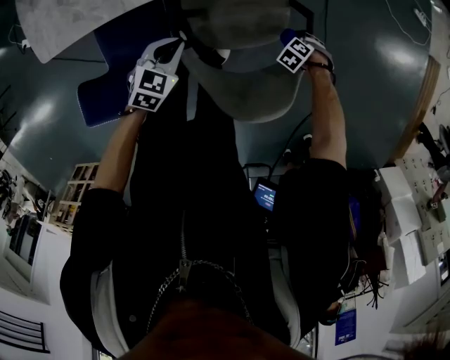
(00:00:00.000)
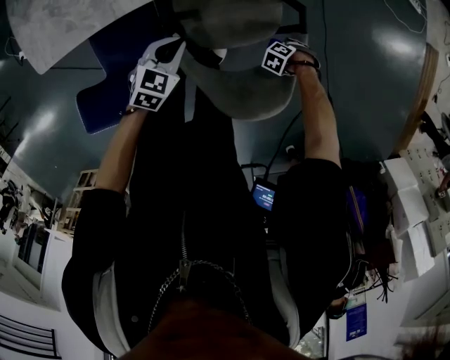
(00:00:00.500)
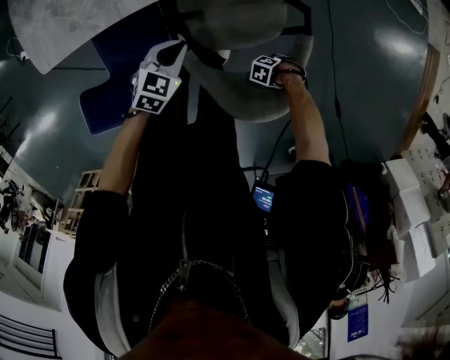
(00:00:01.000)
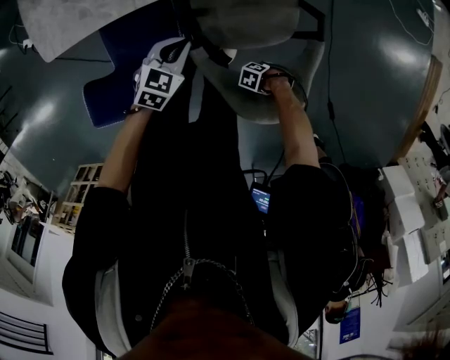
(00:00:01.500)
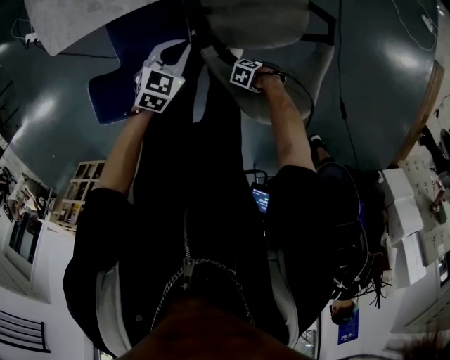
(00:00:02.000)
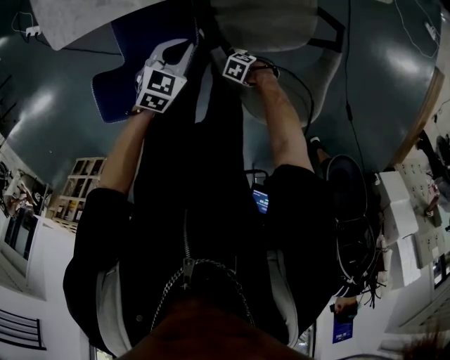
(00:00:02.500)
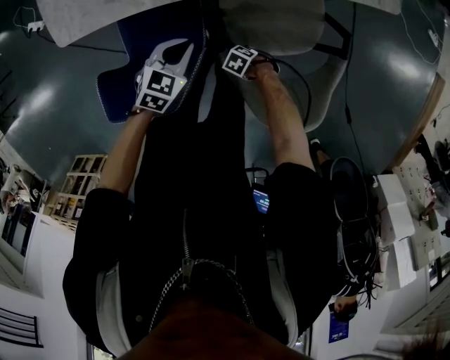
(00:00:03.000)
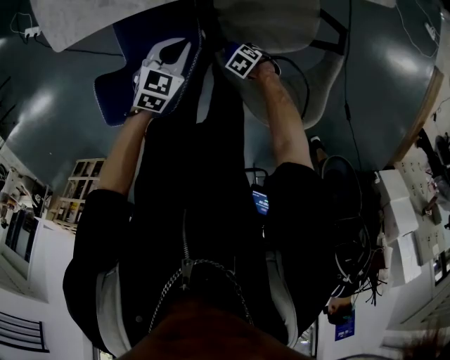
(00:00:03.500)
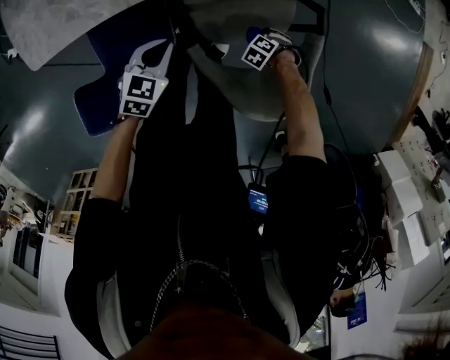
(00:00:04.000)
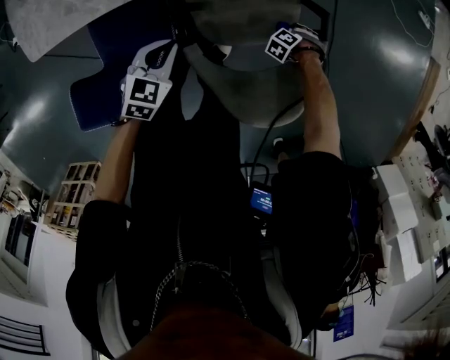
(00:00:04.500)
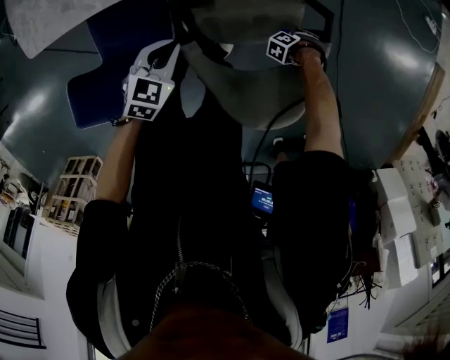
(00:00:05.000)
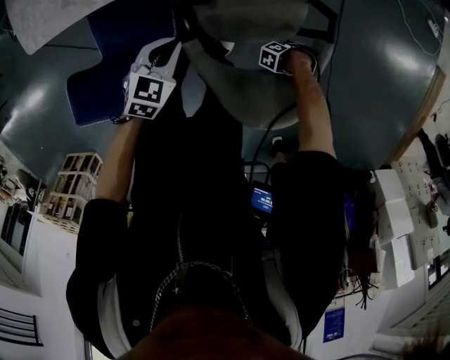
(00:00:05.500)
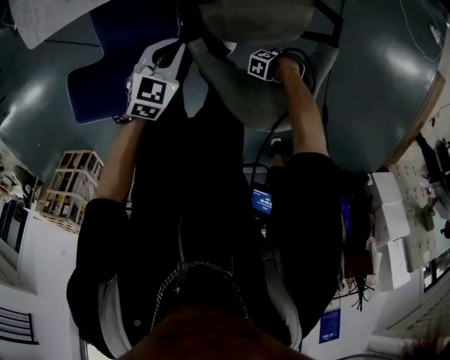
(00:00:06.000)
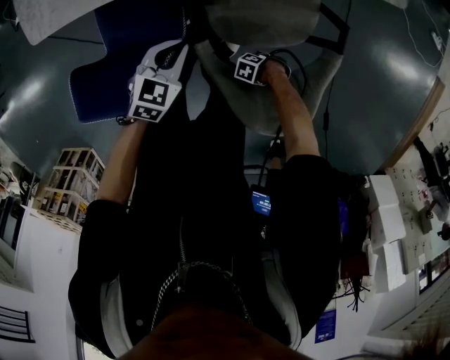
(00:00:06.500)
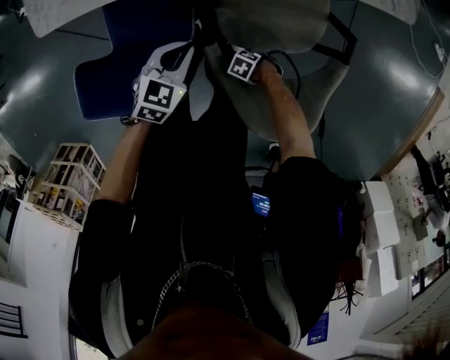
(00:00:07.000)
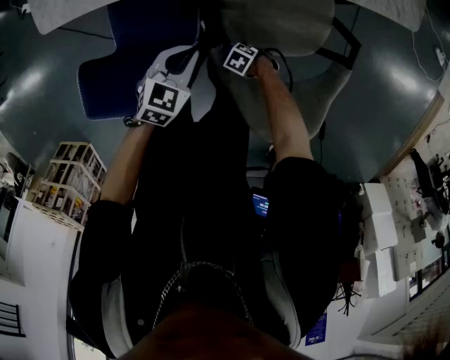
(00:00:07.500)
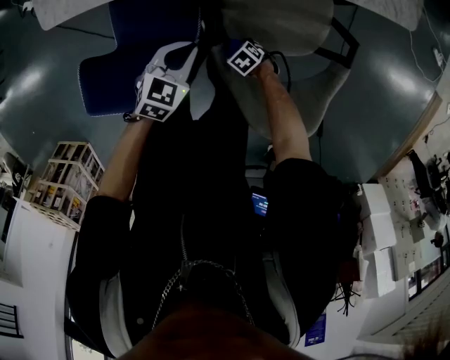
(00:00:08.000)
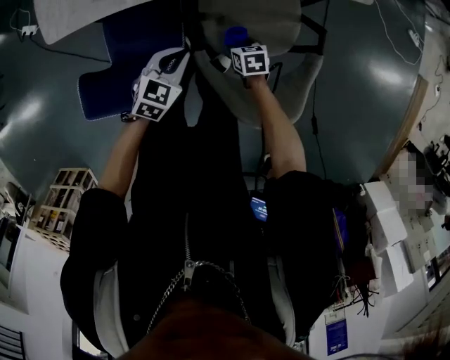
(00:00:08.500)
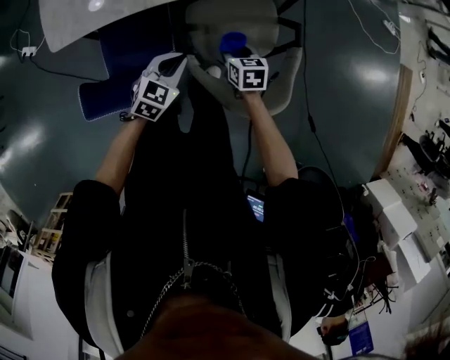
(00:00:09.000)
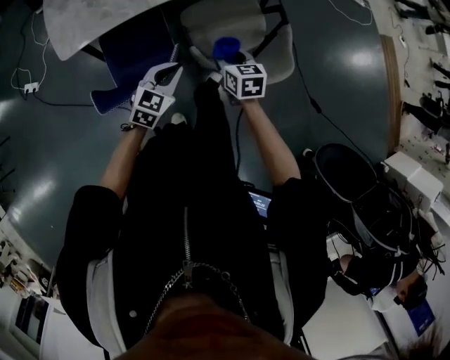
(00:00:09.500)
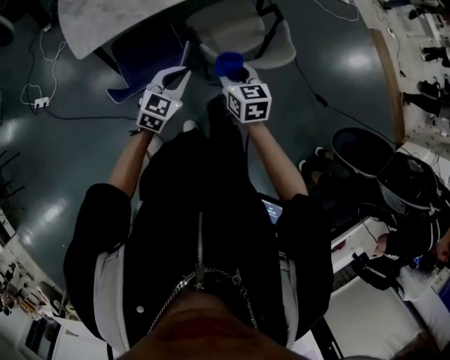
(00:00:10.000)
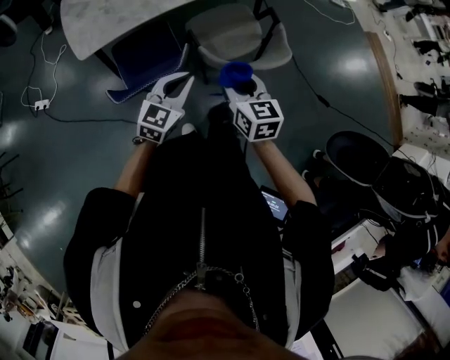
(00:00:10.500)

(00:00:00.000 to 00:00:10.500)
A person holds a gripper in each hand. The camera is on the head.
00:00:00.000 - 00:00:02.000: The left gripper ends up roughly 5 cm from where it was.
00:00:06.500 - 00:00:08.500: The left gripper changes place by some 5 cm.
00:00:08.500 - 00:00:10.500: The left gripper changes place by about 30 cm, and turns by roughly 30 degrees.

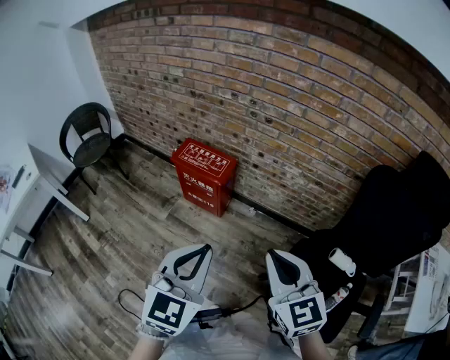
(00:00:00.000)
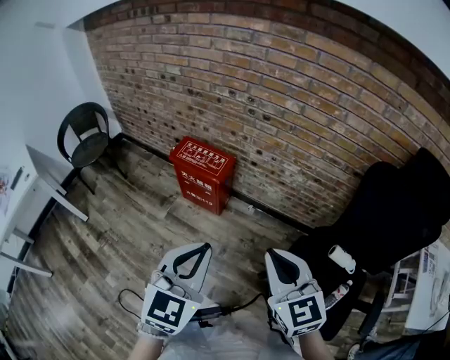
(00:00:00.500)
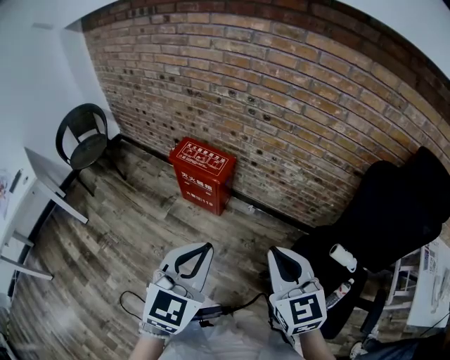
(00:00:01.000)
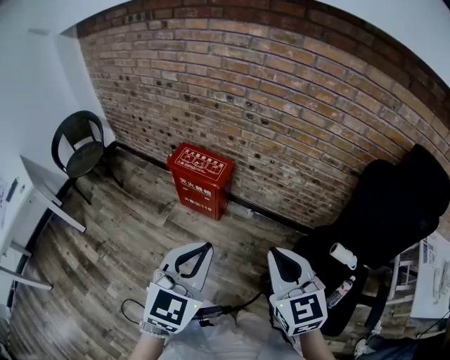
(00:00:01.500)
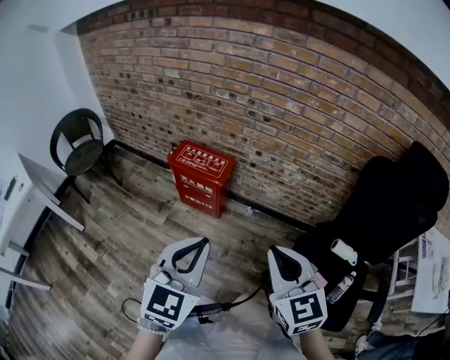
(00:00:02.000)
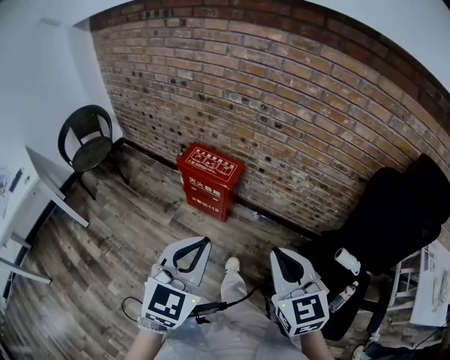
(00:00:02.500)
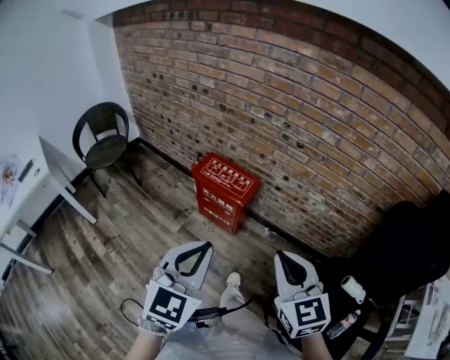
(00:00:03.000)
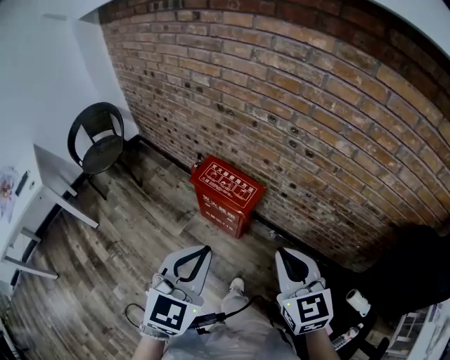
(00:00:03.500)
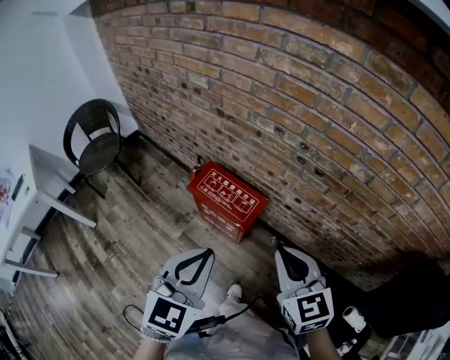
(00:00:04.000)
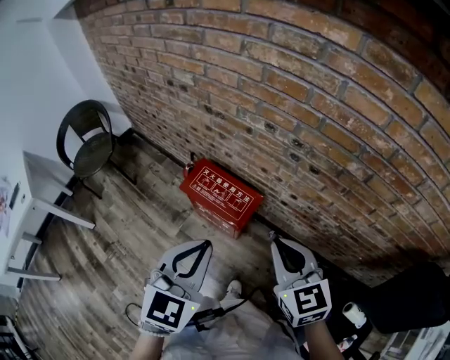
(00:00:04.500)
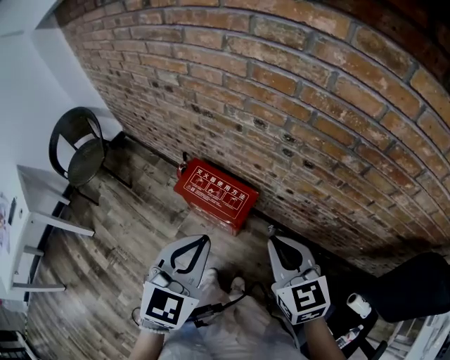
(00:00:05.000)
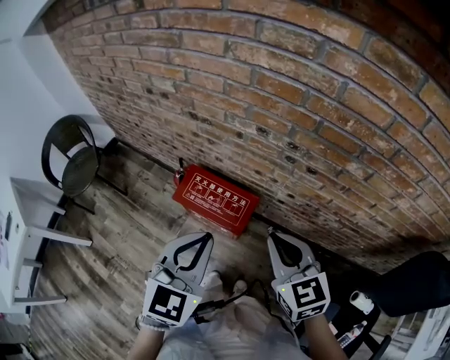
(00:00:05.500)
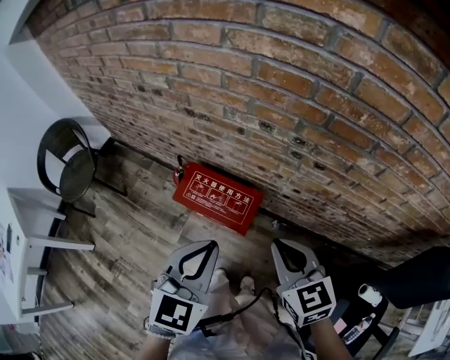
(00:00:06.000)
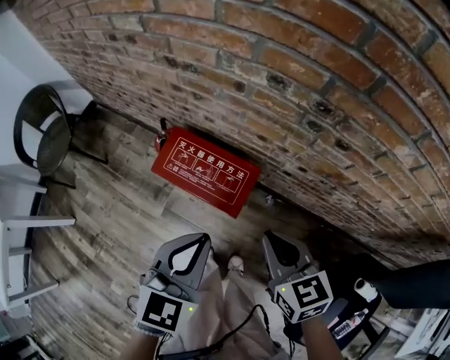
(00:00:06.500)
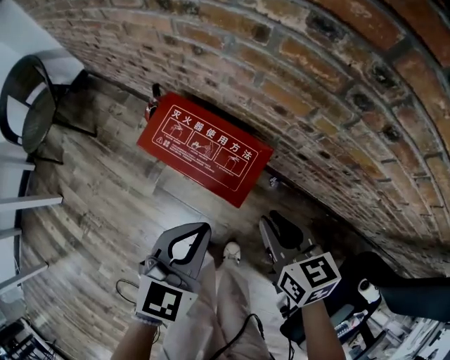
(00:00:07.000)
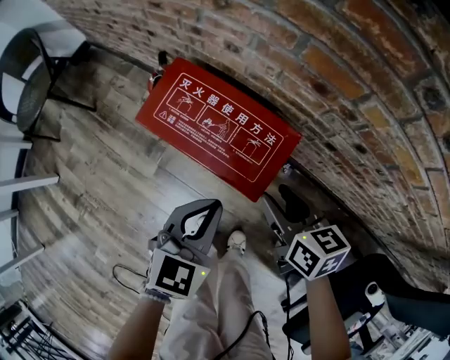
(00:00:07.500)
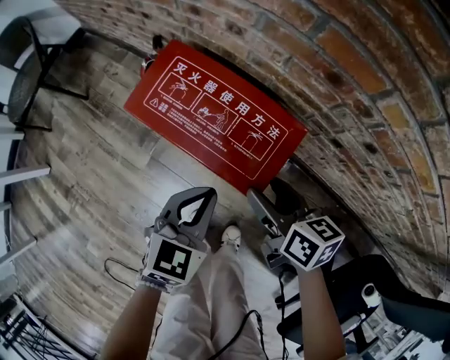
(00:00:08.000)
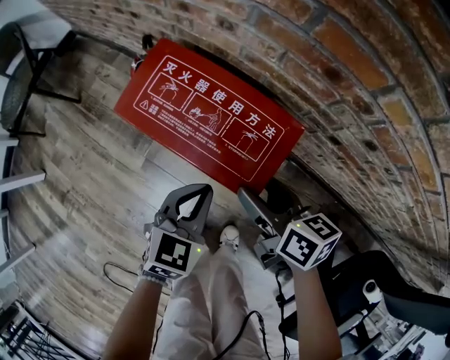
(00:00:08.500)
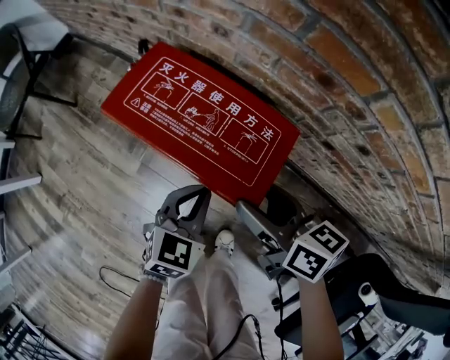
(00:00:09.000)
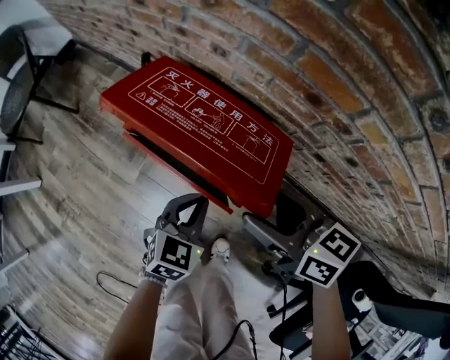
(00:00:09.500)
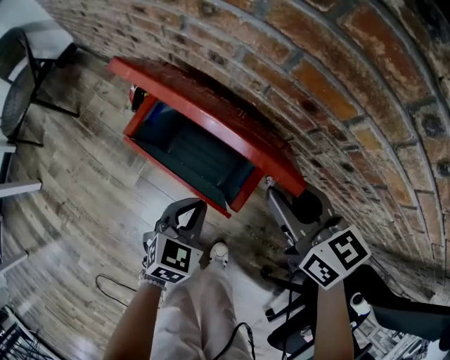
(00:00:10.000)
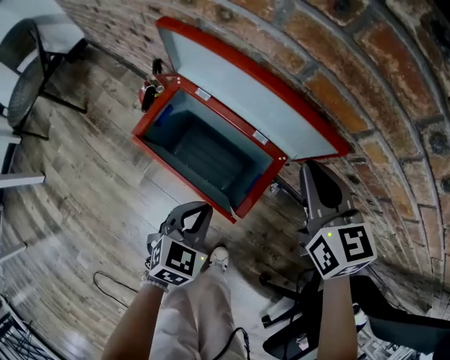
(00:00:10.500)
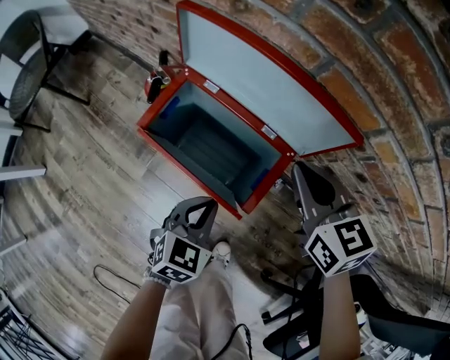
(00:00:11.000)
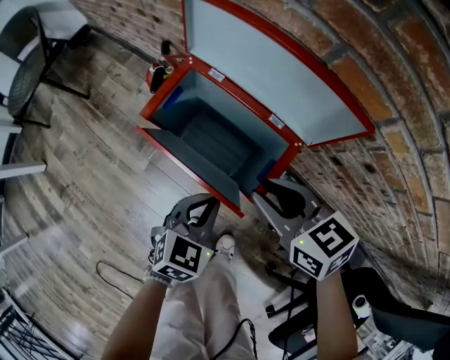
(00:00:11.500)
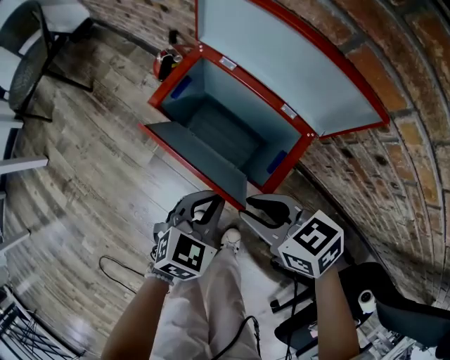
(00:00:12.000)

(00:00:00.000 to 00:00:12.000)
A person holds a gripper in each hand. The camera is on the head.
00:00:00.000 - 00:00:02.000: The left gripper is displaced to the left by approximately 5 cm.
00:00:02.000 - 00:00:04.000: Both grippers move forward, about 30 cm.
00:00:04.000 - 00:00:06.000: The grippers both shift forward by some 10 cm.
00:00:06.000 - 00:00:08.000: The grippers both shift downward by about 40 cm. The right gripper changes its angle by some 40 degrees, and opens up.
00:00:08.000 - 00:00:10.000: The right gripper travels upward and forward by approximately 10 cm, changes its angle by roughly 20 degrees, and closes its fingers. The left gripper shifts approximately 5 cm downward.
00:00:10.000 - 00:00:12.000: The right gripper travels to the left, downward and backward by approximately 15 cm, and swivels approximately 30 degrees.

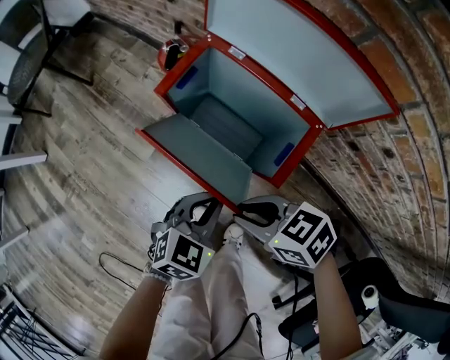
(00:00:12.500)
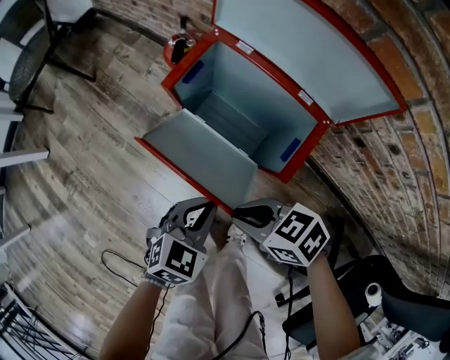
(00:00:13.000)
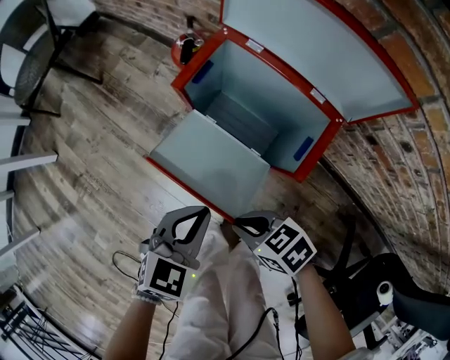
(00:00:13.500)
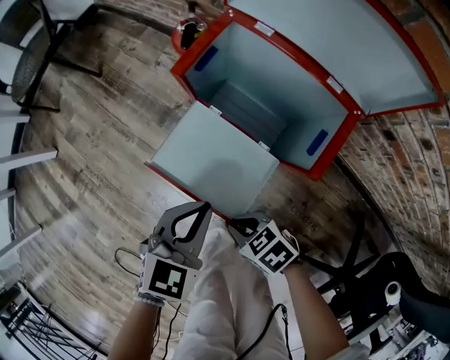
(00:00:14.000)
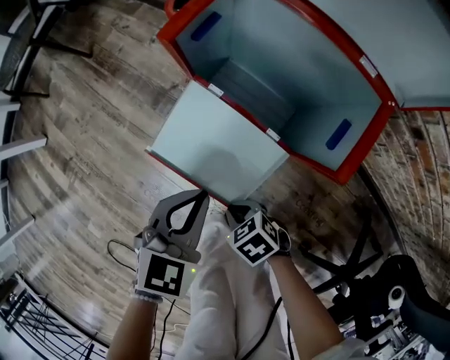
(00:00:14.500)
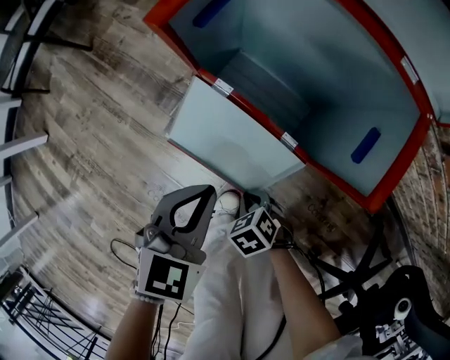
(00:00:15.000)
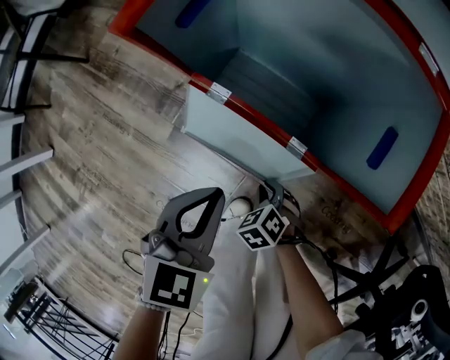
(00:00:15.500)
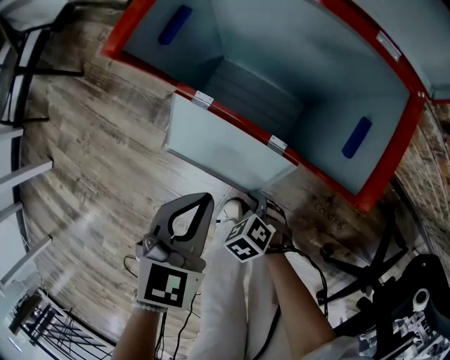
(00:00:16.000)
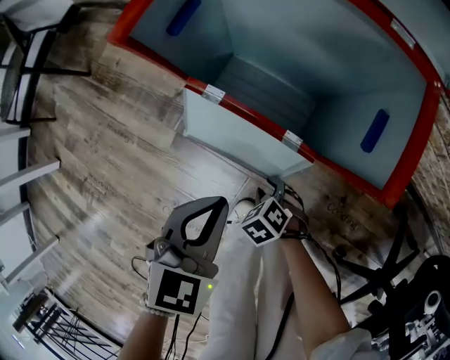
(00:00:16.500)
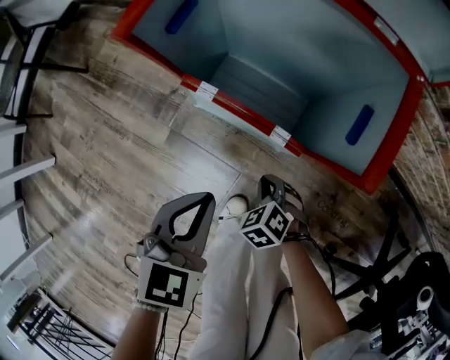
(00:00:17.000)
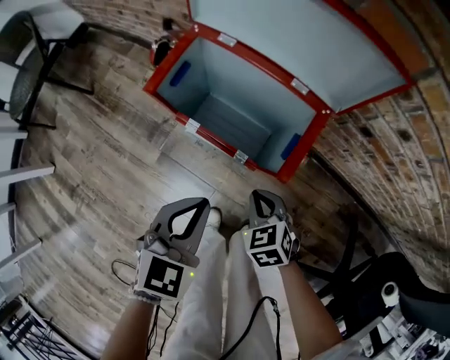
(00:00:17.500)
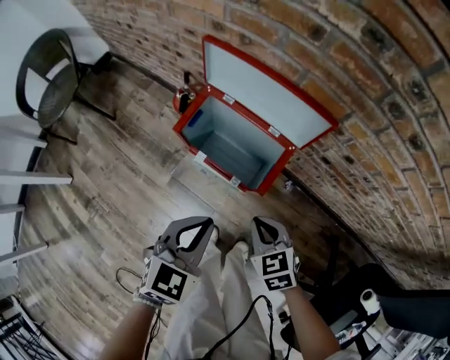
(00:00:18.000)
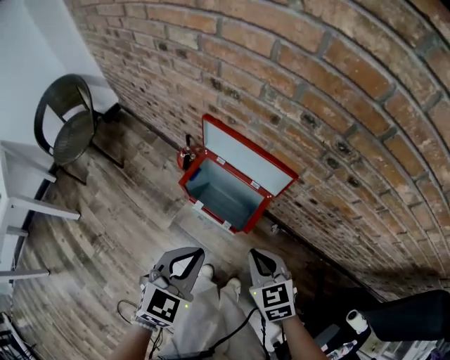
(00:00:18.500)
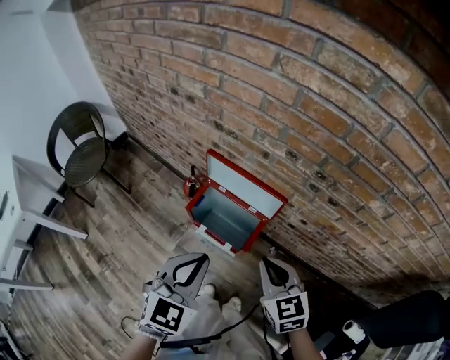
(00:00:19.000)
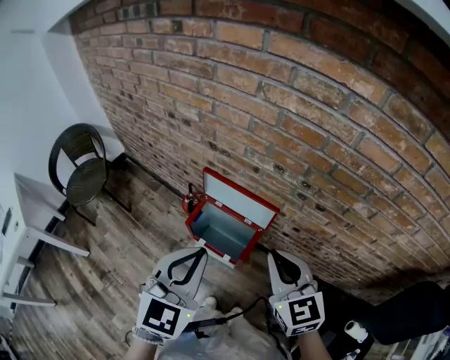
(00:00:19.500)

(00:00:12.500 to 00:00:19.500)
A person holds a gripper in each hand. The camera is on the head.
00:00:12.500 - 00:00:14.500: The right gripper shifts roughly 25 cm downward, and rotates about 20 degrees, while the left gripper moves about 10 cm.
00:00:14.500 - 00:00:16.000: The right gripper shifts approximately 10 cm downward, and changes its angle by some 20 degrees; the left gripper ends up about 5 cm from where it was.
00:00:16.000 - 00:00:17.500: The left gripper is displaced upward by about 15 cm; the right gripper travels upward by approximately 20 cm, and swivels about 20 degrees.
00:00:17.500 - 00:00:19.500: Both grippers travel together upward, approximately 50 cm. The right gripper angles its fingers upward, by about 40 degrees. The left gripper turns by some 30 degrees.
